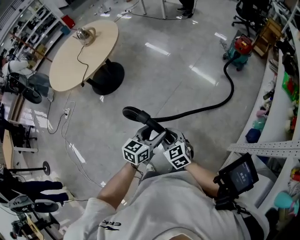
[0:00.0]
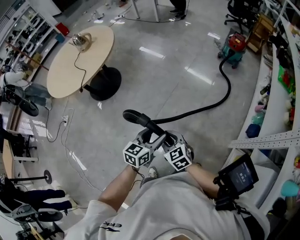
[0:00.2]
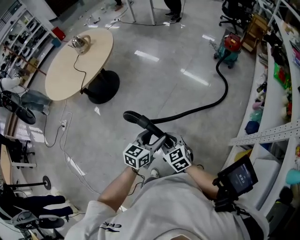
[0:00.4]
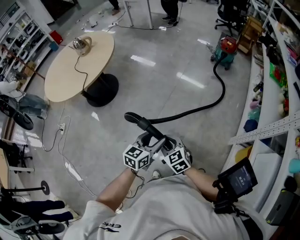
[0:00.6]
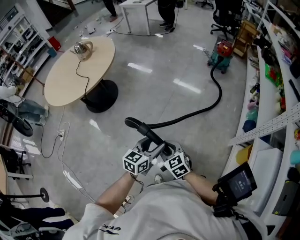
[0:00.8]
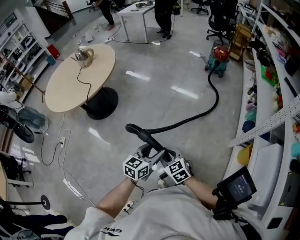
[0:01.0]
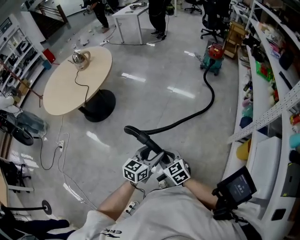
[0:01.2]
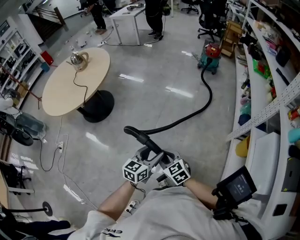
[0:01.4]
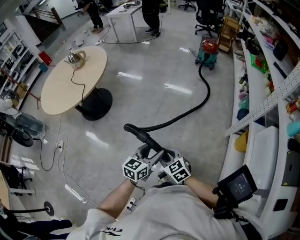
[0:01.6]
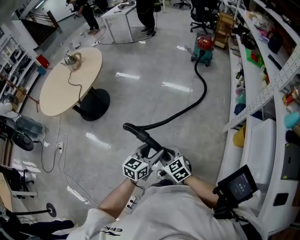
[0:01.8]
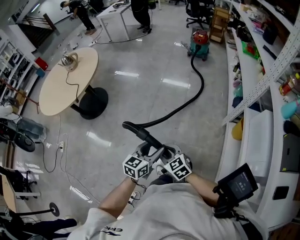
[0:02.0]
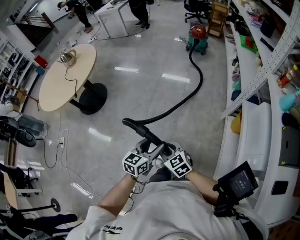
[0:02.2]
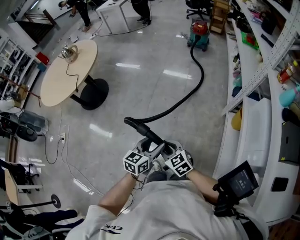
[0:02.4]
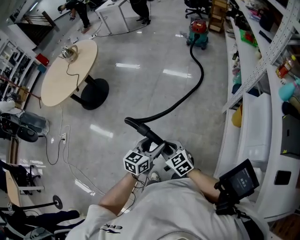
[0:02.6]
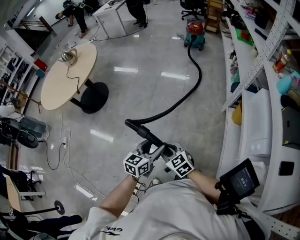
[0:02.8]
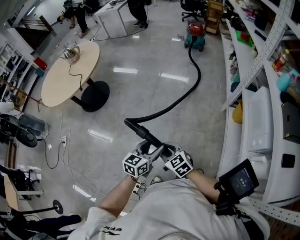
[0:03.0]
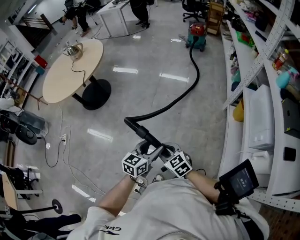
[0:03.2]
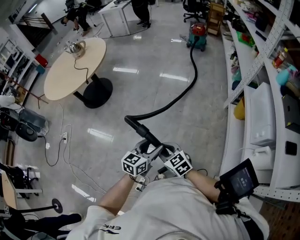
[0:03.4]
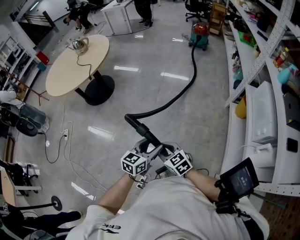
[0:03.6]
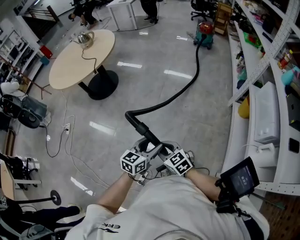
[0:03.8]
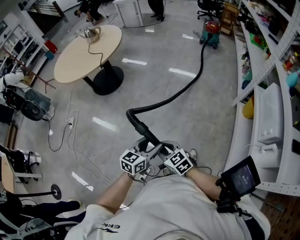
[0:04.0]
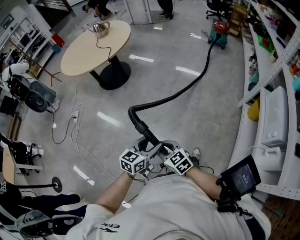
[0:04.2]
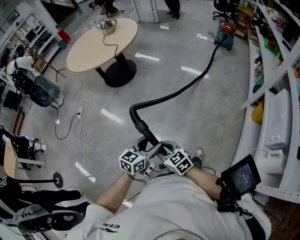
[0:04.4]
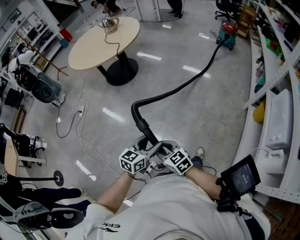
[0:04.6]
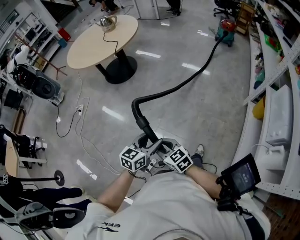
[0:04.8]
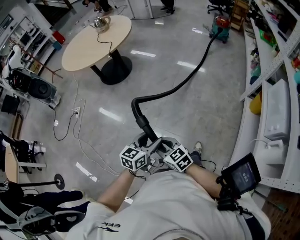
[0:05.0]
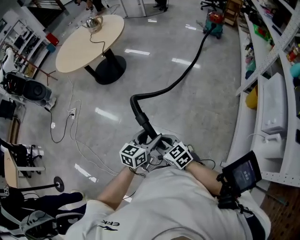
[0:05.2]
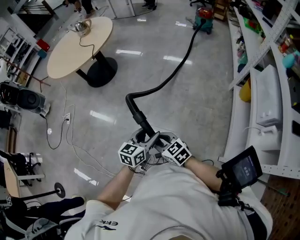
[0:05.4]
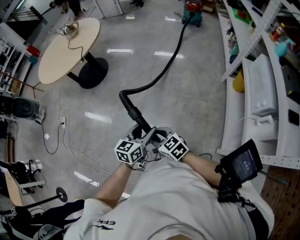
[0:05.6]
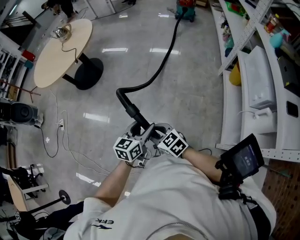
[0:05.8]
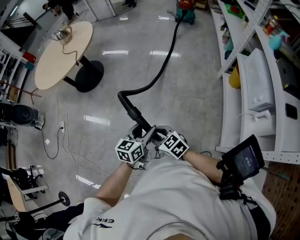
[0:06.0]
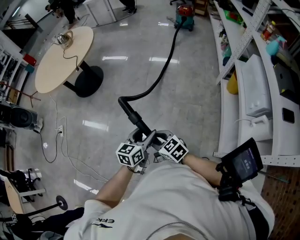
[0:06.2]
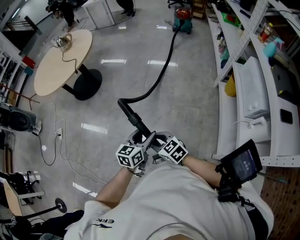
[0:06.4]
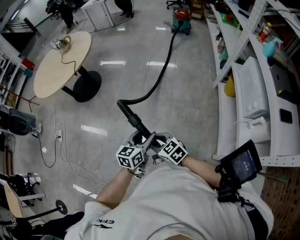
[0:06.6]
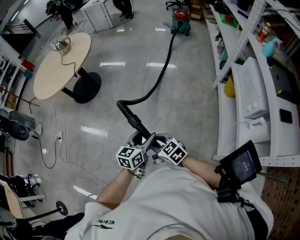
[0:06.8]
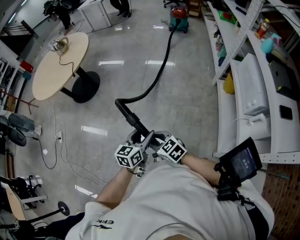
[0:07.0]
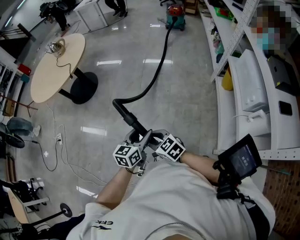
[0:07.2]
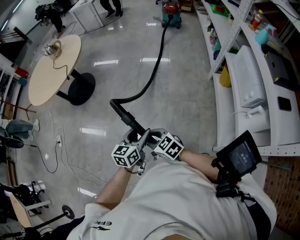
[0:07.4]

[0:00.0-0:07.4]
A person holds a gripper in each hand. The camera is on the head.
0.0 to 1.4 s: The two grippers go approximately 20 cm backward and to the left.
1.4 to 3.0 s: The two grippers go approximately 20 cm backward.
3.0 to 4.4 s: Both grippers move to the left and backward, some 25 cm.
4.4 to 6.0 s: Both grippers travel together to the right, about 10 cm.
6.0 to 7.4 s: The grippers make only small movements.

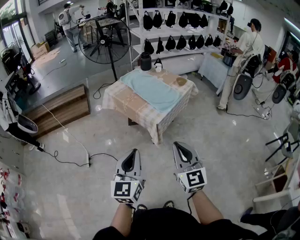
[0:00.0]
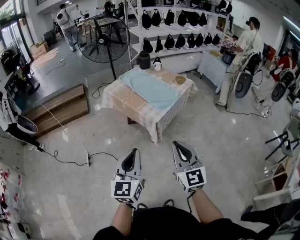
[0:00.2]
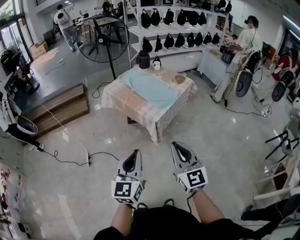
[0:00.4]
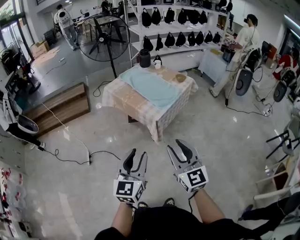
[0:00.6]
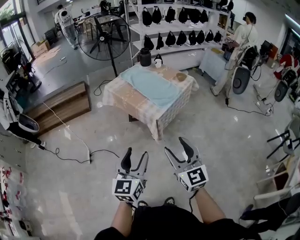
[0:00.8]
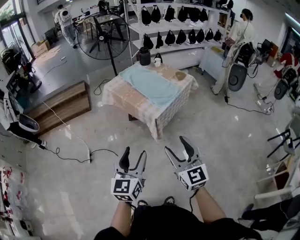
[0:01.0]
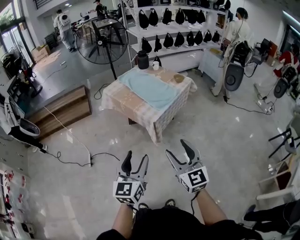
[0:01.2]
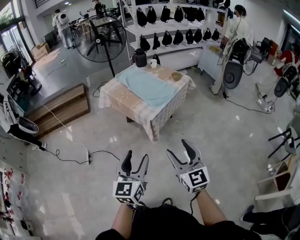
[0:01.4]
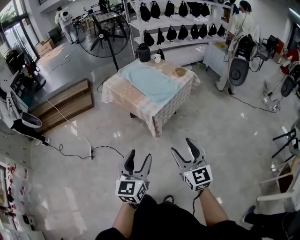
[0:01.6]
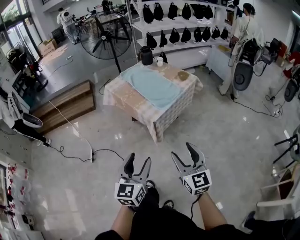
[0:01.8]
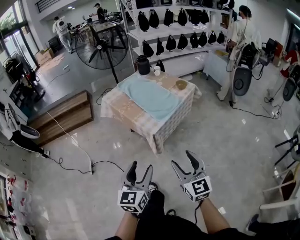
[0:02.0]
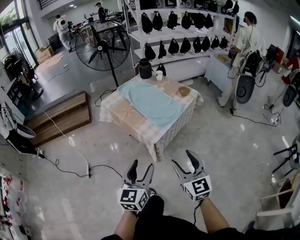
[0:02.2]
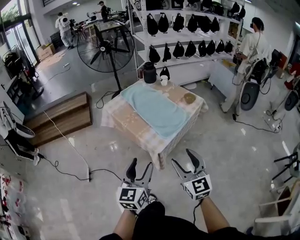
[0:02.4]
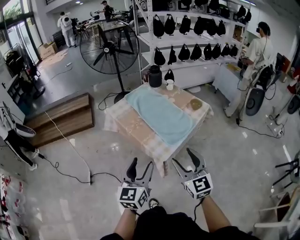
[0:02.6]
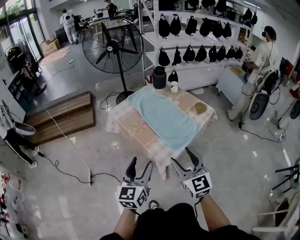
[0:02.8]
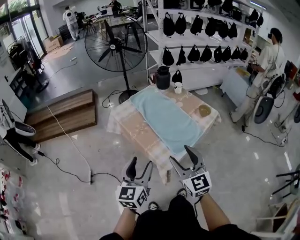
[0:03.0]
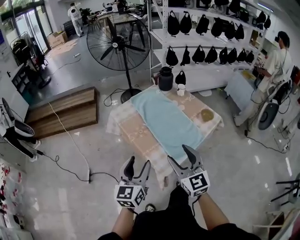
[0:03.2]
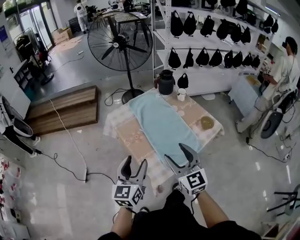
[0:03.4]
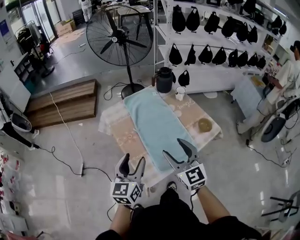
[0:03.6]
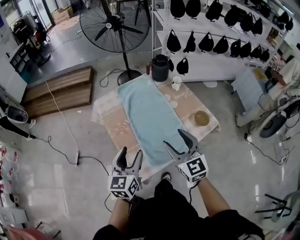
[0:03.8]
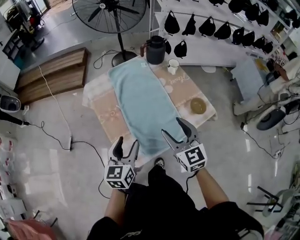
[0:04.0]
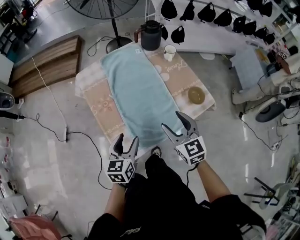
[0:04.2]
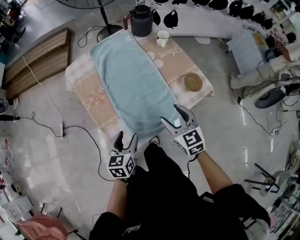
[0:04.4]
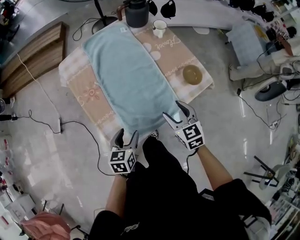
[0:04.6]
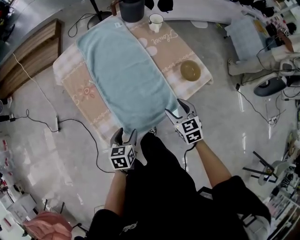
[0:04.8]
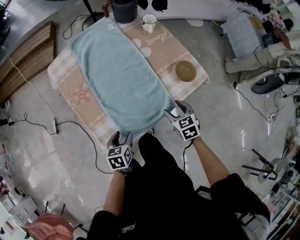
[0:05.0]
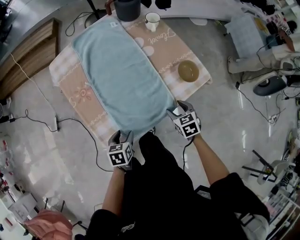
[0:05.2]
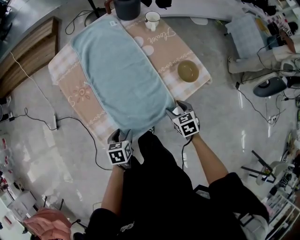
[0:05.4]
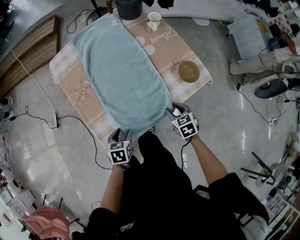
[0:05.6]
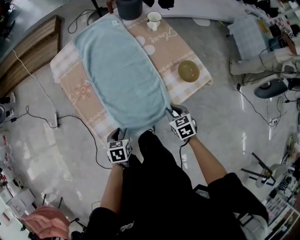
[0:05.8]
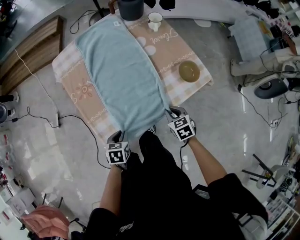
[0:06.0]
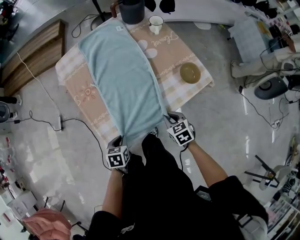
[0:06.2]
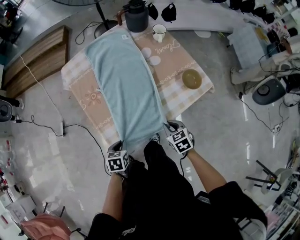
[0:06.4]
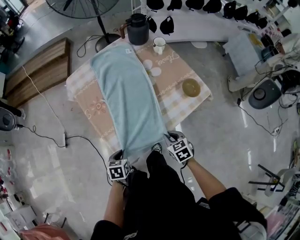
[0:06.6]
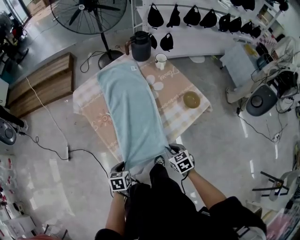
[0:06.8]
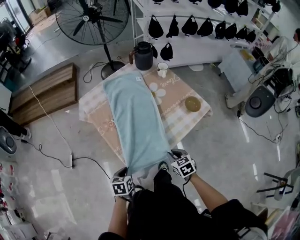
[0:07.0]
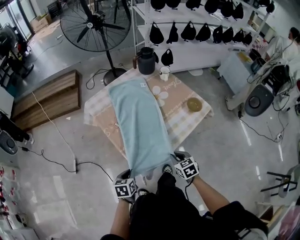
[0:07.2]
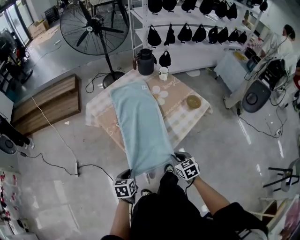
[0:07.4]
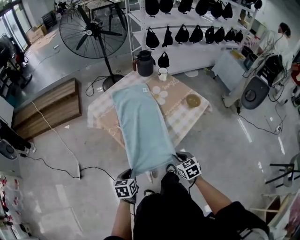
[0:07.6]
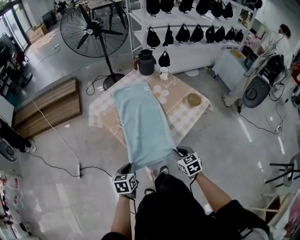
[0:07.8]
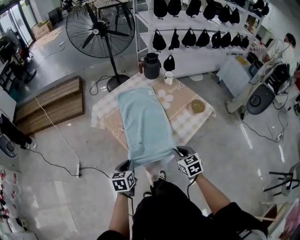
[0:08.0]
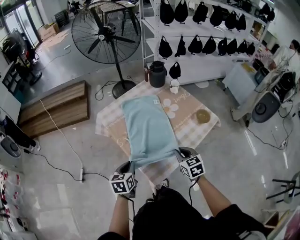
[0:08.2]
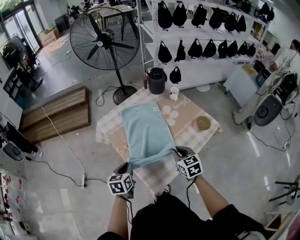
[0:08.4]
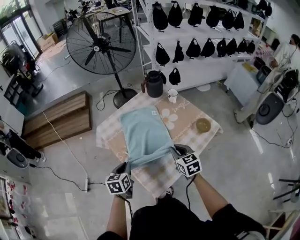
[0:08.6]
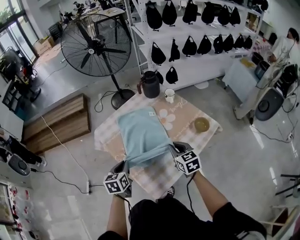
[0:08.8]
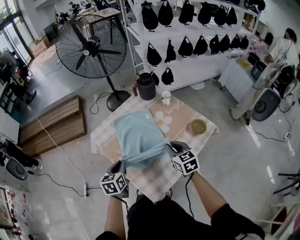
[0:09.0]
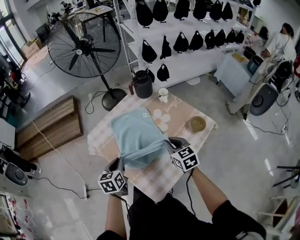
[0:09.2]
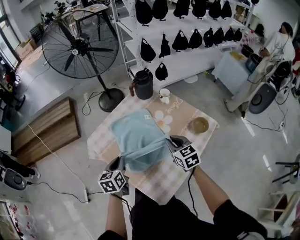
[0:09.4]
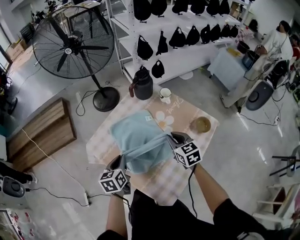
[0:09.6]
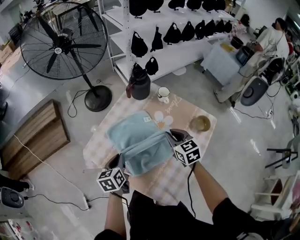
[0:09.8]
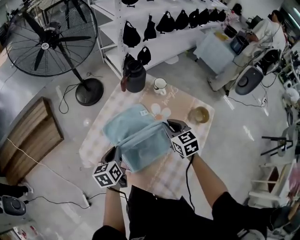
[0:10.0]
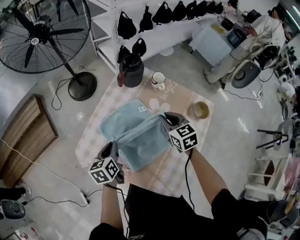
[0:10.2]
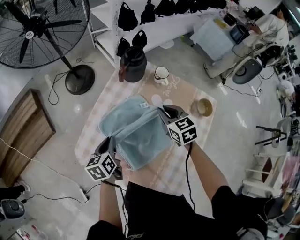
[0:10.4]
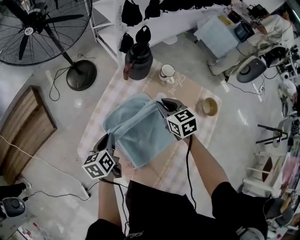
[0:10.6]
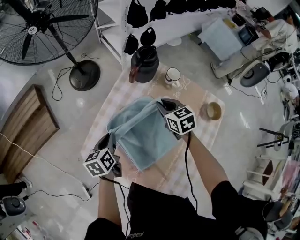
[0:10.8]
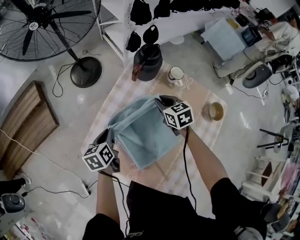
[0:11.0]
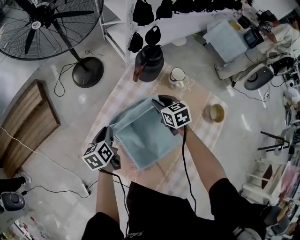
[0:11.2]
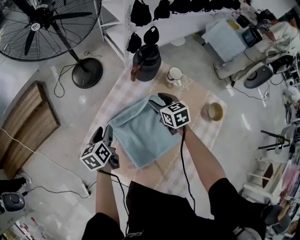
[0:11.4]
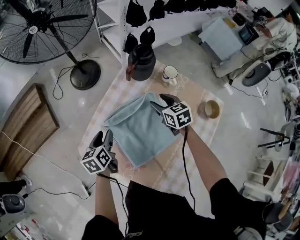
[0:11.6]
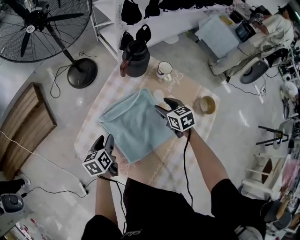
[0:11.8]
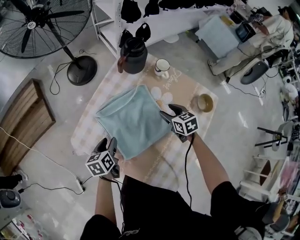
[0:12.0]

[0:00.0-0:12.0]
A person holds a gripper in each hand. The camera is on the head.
0.0 to 1.6 s: The left gripper moves to the right and downward, about 10 cm, and opens its fingers, while the right gripper travels to the right by some 10 cm, and opens up.
1.6 to 3.0 s: The grippers both shift forward by approximately 40 cm.
3.0 to 4.4 s: The left gripper travels downward, to the right and forward by about 35 cm, and rotates roughly 30 degrees. Meanwhile the right gripper moves to the right, forward and downward, roughly 40 cm, and swivels approximately 30 degrees.
4.4 to 6.0 s: The right gripper goes some 20 cm downward and to the right, turns by about 30 degrees, and closes, while the left gripper travels downward by about 15 cm, swivels roughly 30 degrees, and closes its fingers.
6.0 to 7.6 s: The left gripper moves to the left, upward and backward, about 25 cm; the right gripper shifts roughly 25 cm to the left, backward and upward.
7.6 to 9.0 s: The left gripper shifts some 25 cm forward; the right gripper moves forward and upward, about 25 cm.
9.0 to 10.4 s: Both grippers travel together forward, about 25 cm. The left gripper changes its angle by roughly 20 degrees.
10.4 to 12.0 s: The right gripper travels downward and to the right by roughly 10 cm, reaches approximately 10 cm forward, then returns, and opens up. Meanwhile the left gripper heads downward and backward, covering roughly 10 cm, and opens.

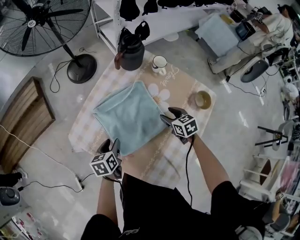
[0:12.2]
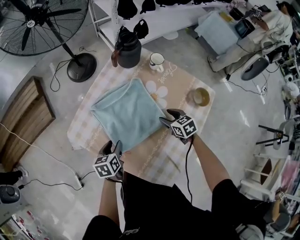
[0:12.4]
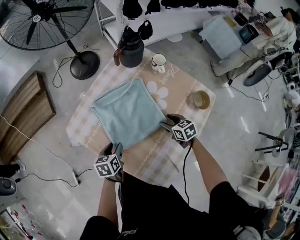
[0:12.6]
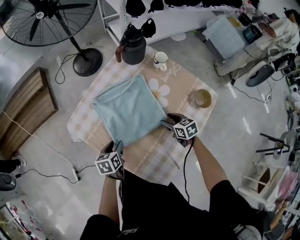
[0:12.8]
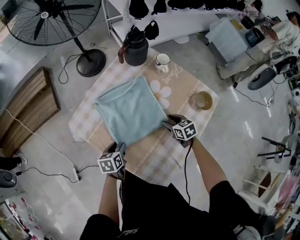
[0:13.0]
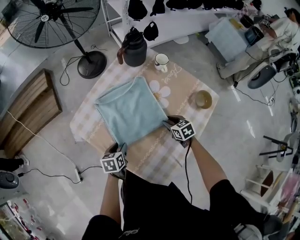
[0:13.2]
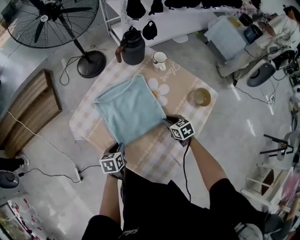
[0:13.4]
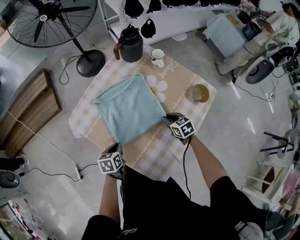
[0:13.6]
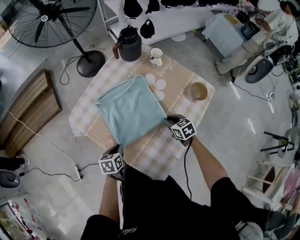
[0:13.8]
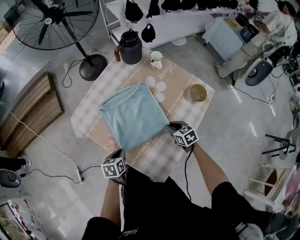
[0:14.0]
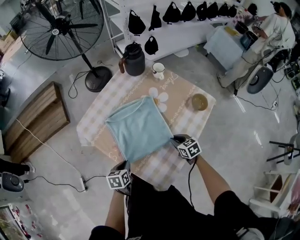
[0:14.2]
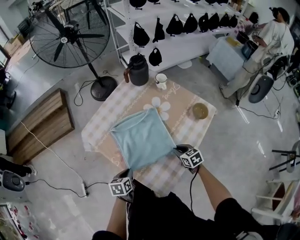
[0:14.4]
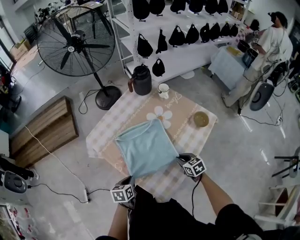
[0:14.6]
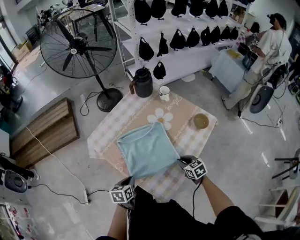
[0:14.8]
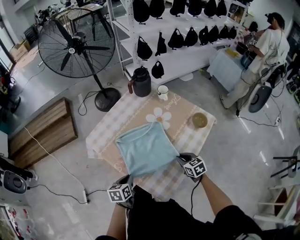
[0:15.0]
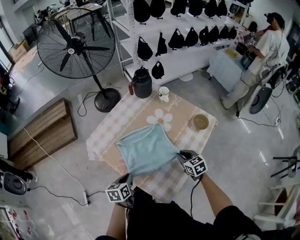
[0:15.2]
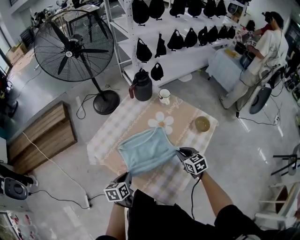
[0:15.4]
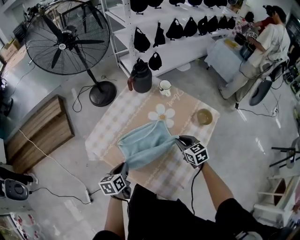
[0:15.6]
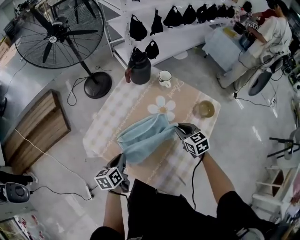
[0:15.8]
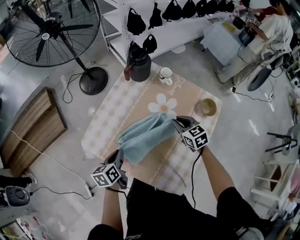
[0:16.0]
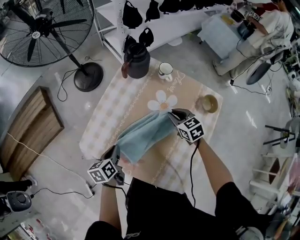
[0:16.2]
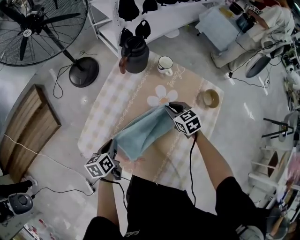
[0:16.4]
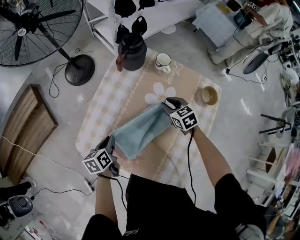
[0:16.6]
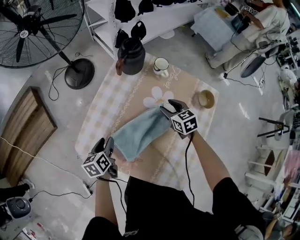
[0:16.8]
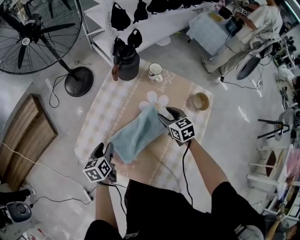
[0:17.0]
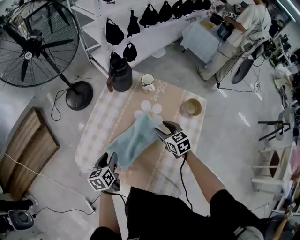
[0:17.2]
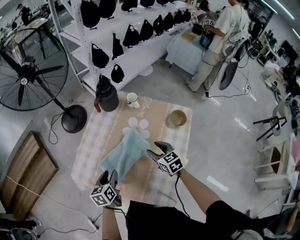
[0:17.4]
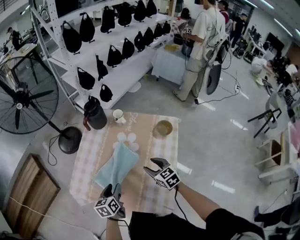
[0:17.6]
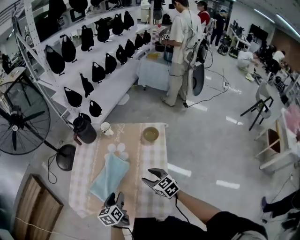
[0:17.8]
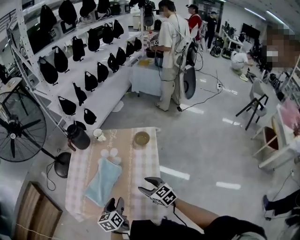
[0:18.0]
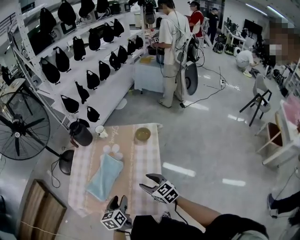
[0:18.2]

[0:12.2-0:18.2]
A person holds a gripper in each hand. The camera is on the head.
12.2 to 13.8 s: Both grippers travel together backward, about 15 cm. The left gripper closes. Meanwhile the right gripper closes its fingers.
13.8 to 15.2 s: Both grippers travel together upward and backward, some 10 cm.
15.2 to 16.6 s: The left gripper moves forward and to the left, approximately 25 cm; the right gripper heads forward, covering about 25 cm.
16.6 to 18.2 s: The left gripper moves to the right, backward and upward, about 35 cm, rotates roughly 30 degrees, and opens; the right gripper heads backward, to the right and upward, covering some 35 cm, changes its angle by about 30 degrees, and opens its fingers.
